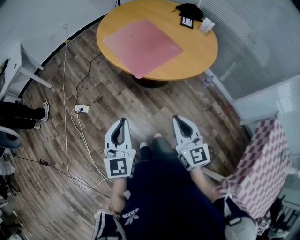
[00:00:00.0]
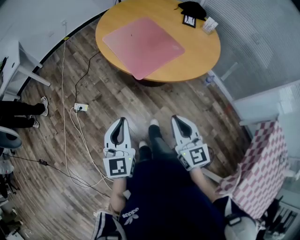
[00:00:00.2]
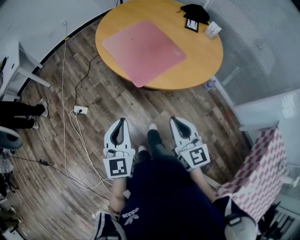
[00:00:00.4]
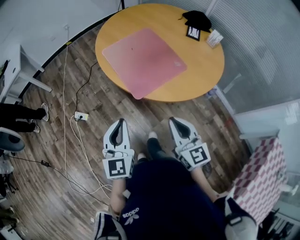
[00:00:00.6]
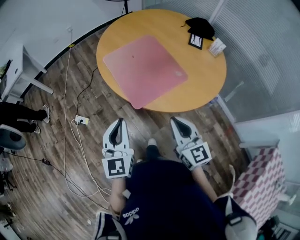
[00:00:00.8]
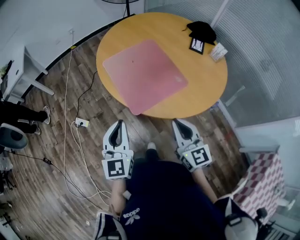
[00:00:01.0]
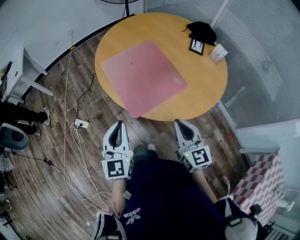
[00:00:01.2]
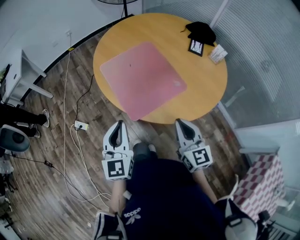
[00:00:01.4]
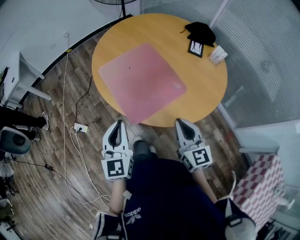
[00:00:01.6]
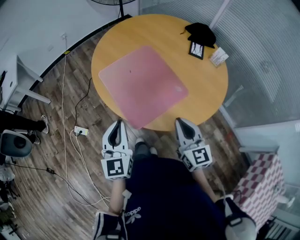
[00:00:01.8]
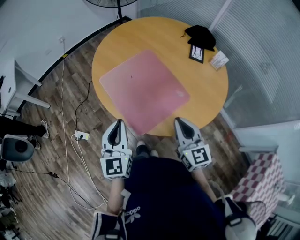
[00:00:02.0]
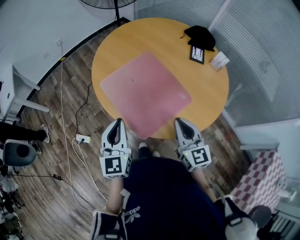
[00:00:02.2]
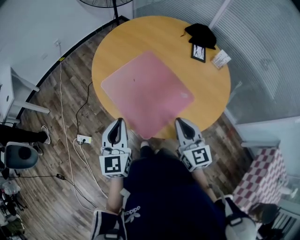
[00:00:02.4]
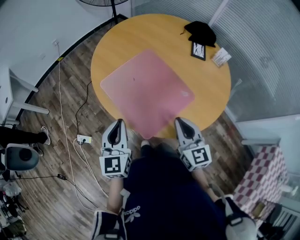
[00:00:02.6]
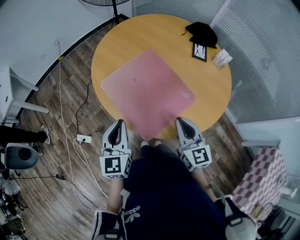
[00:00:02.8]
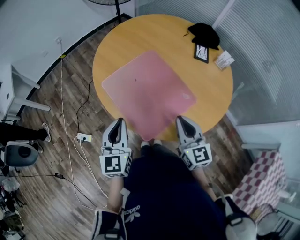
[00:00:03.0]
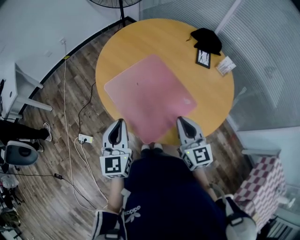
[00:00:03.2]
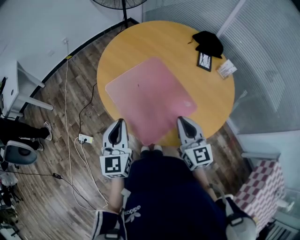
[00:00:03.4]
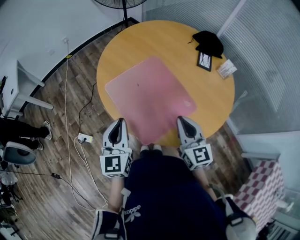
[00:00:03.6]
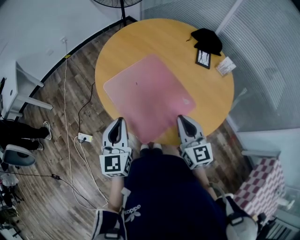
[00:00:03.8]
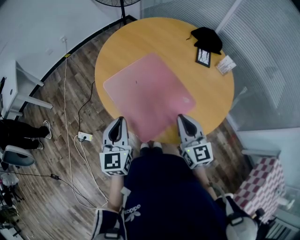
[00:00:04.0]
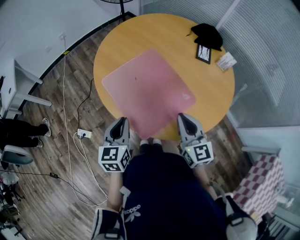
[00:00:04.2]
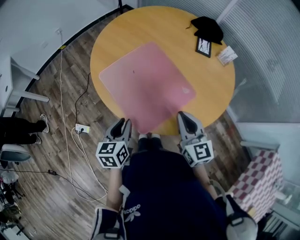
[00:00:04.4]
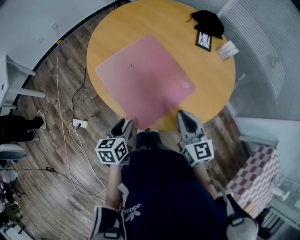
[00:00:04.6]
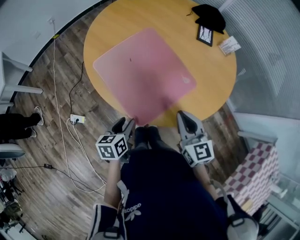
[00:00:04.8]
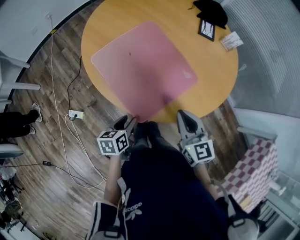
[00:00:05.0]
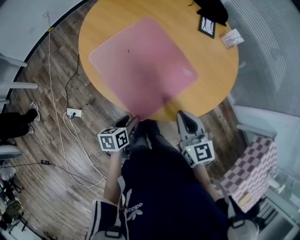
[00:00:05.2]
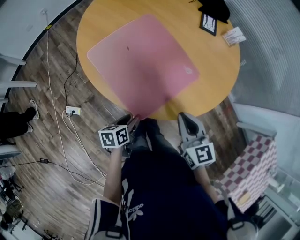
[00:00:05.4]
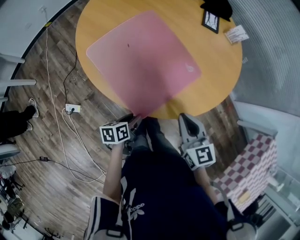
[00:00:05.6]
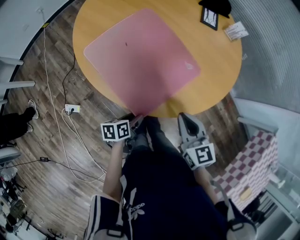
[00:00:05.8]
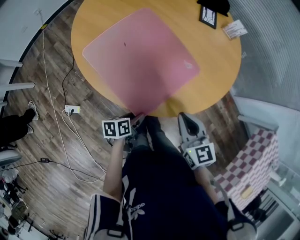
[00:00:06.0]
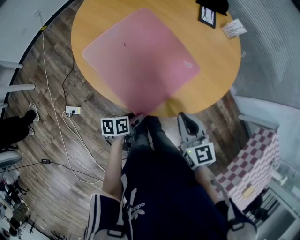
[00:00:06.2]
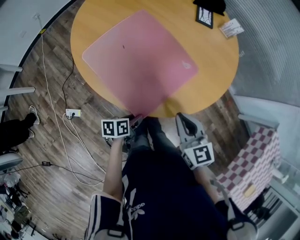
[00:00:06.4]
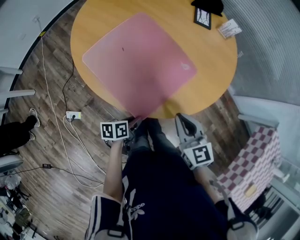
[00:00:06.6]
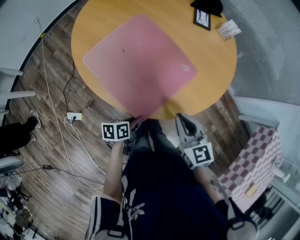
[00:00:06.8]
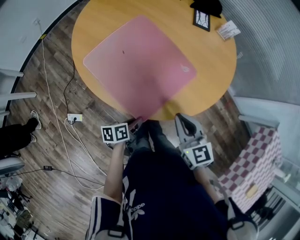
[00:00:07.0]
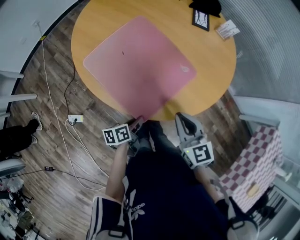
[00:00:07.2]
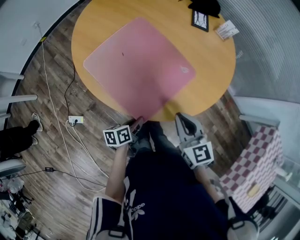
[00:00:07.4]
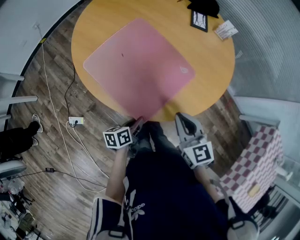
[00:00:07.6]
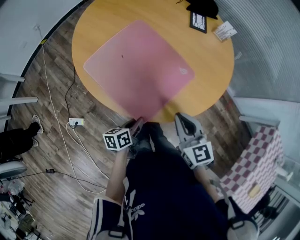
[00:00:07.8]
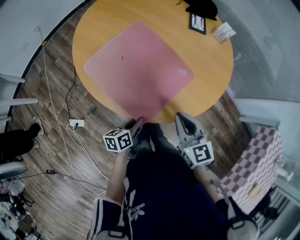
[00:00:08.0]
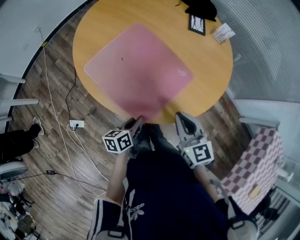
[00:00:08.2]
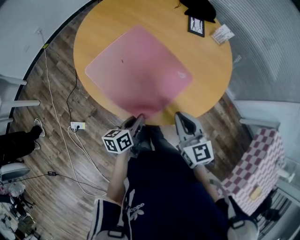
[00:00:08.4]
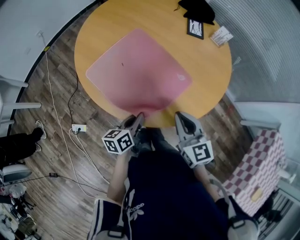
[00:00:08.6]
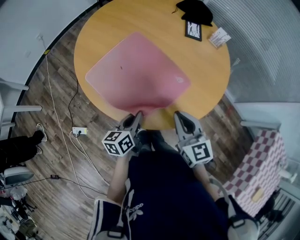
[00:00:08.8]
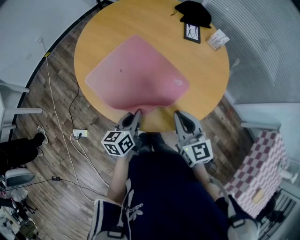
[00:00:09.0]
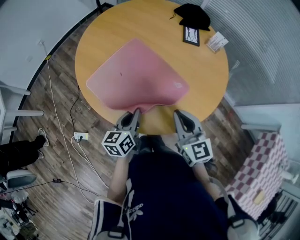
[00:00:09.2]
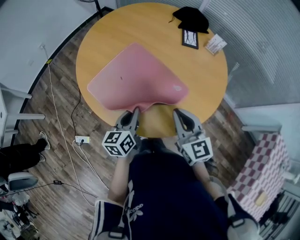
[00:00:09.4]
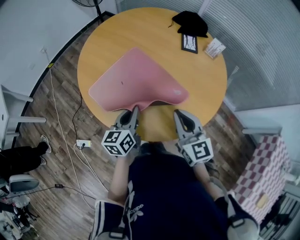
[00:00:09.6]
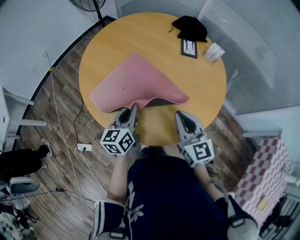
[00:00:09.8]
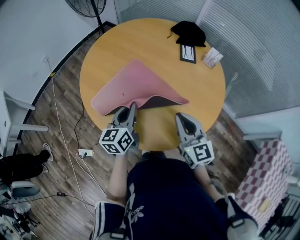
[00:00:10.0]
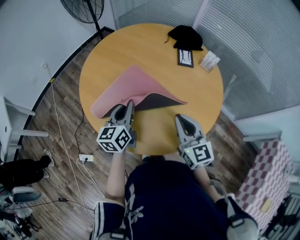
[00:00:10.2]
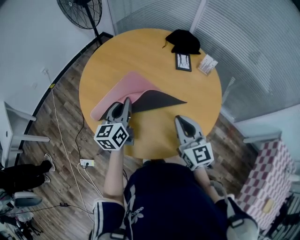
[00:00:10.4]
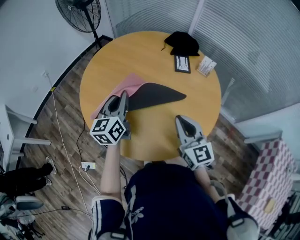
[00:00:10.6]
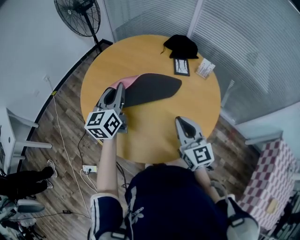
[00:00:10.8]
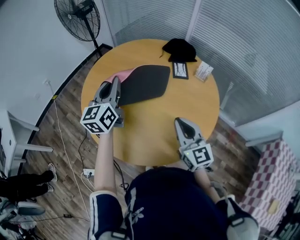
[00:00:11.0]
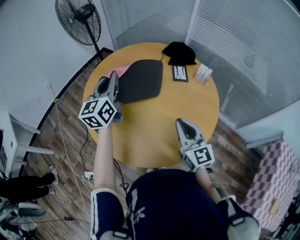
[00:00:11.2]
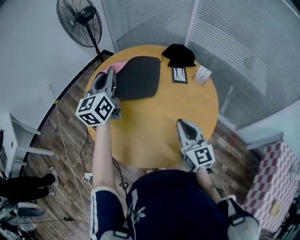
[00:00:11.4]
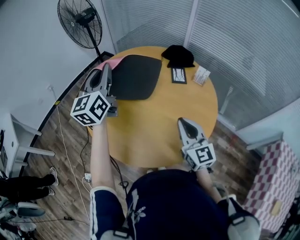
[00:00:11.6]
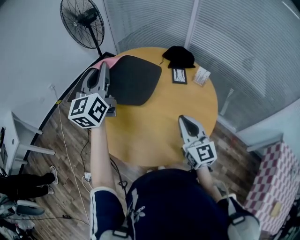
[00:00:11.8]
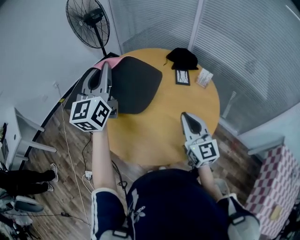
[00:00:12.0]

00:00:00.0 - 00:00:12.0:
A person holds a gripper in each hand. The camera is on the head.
00:00:00.0 - 00:00:01.6: The two grippers go about 25 cm forward.
00:00:01.6 - 00:00:03.0: The grippers both shift forward by roughly 10 cm.
00:00:03.0 - 00:00:04.4: The left gripper goes approximately 10 cm downward, and turns by about 30 degrees.
00:00:04.4 - 00:00:06.0: The left gripper moves downward and to the right, about 20 cm, swivels about 40 degrees, and opens. The right gripper heads downward and backward, covering roughly 10 cm.
00:00:06.0 - 00:00:07.6: The left gripper closes.
00:00:07.6 - 00:00:09.0: The right gripper changes place by some 5 cm, while the left gripper is displaced upward and forward by about 15 cm, and changes its angle by approximately 30 degrees.
00:00:09.0 - 00:00:10.4: The right gripper is displaced forward and upward by roughly 10 cm. Meanwhile the left gripper moves forward and upward, roughly 20 cm, and rotates about 20 degrees.
00:00:10.4 - 00:00:12.0: The left gripper travels upward by roughly 25 cm, and swivels some 30 degrees, while the right gripper heads upward, covering some 5 cm.

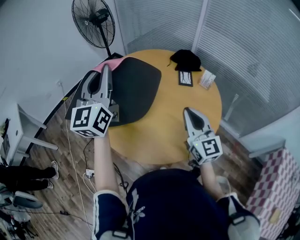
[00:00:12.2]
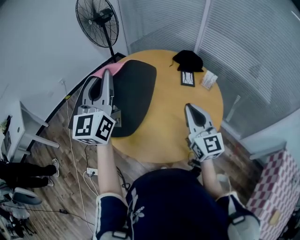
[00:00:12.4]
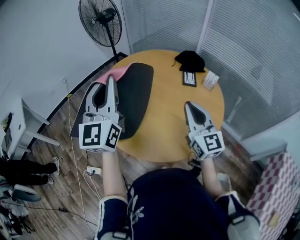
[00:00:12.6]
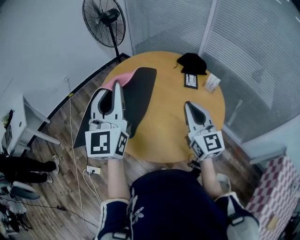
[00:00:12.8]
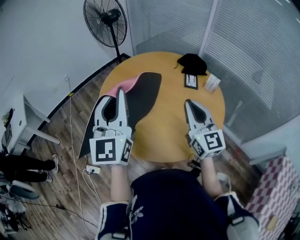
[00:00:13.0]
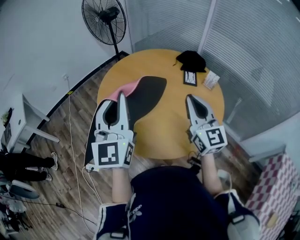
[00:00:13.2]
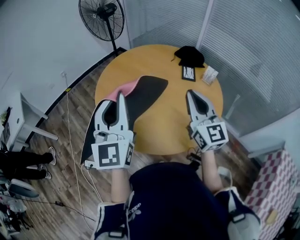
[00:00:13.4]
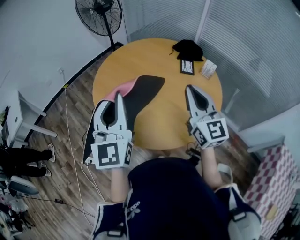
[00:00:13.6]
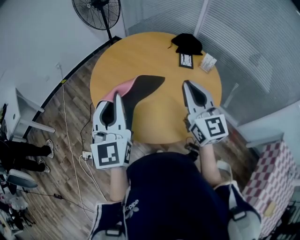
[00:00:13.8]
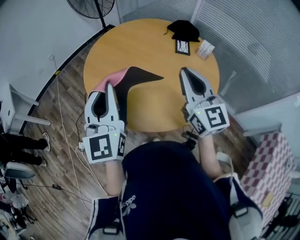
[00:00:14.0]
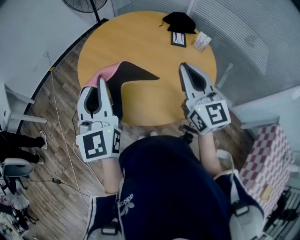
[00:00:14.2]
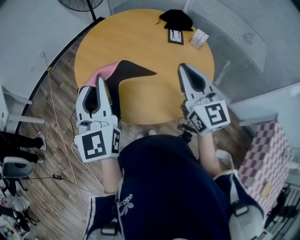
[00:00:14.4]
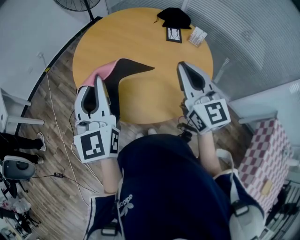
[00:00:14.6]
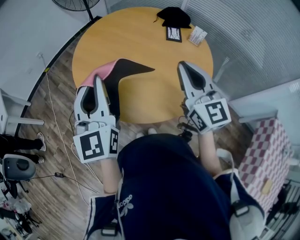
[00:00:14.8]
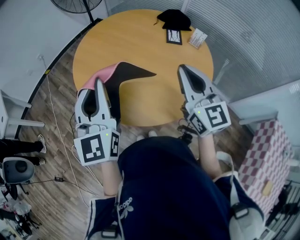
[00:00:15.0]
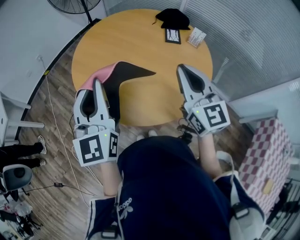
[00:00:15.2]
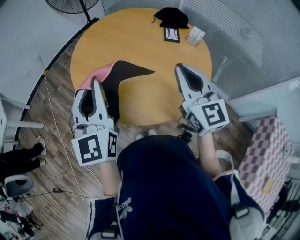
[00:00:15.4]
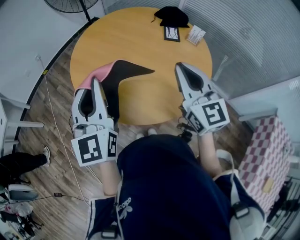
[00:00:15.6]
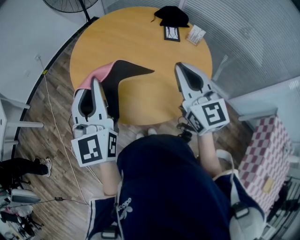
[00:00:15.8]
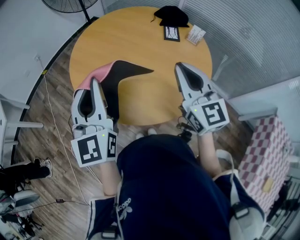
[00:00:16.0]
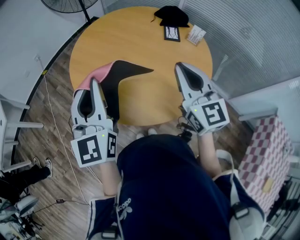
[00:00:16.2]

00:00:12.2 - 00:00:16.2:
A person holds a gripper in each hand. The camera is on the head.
00:00:12.2 - 00:00:13.6: The left gripper shifts roughly 15 cm backward and downward. The right gripper goes some 5 cm upward.
00:00:13.6 - 00:00:14.8: There are only small adjustments of the grippers.
00:00:14.8 - 00:00:16.2: Neither gripper changes place.

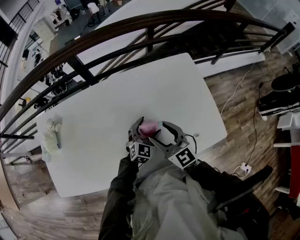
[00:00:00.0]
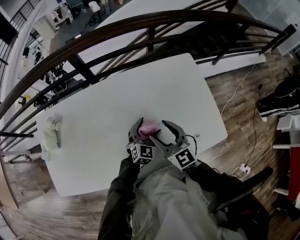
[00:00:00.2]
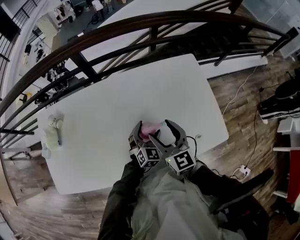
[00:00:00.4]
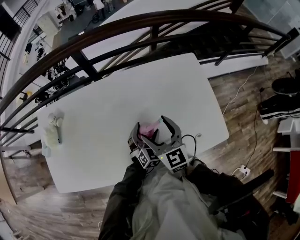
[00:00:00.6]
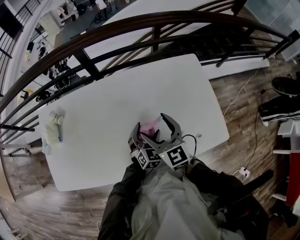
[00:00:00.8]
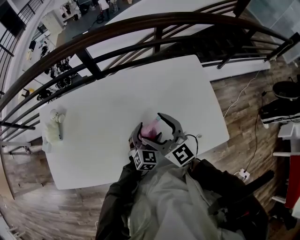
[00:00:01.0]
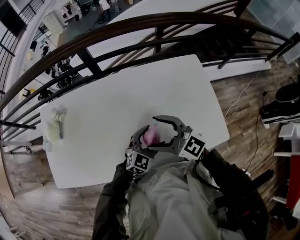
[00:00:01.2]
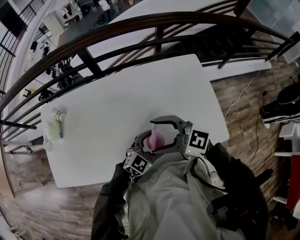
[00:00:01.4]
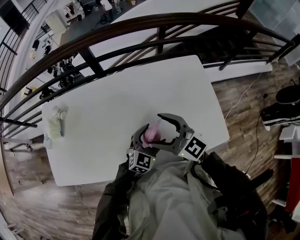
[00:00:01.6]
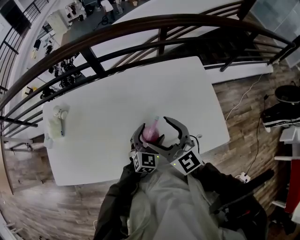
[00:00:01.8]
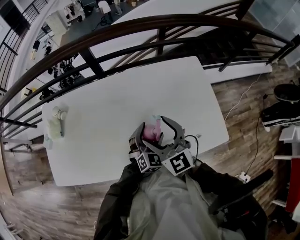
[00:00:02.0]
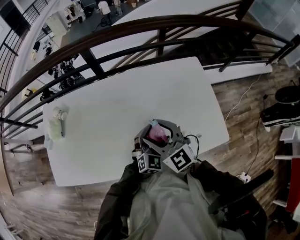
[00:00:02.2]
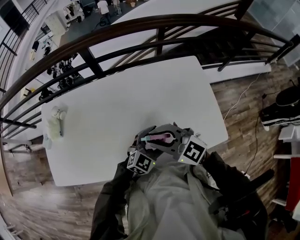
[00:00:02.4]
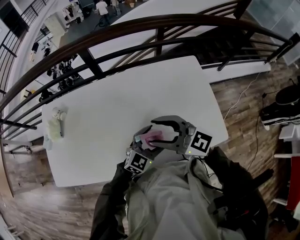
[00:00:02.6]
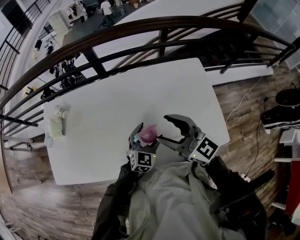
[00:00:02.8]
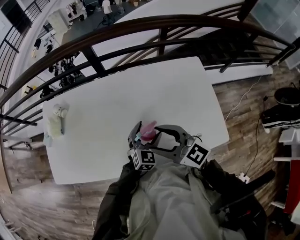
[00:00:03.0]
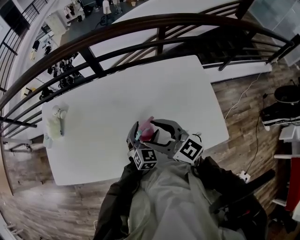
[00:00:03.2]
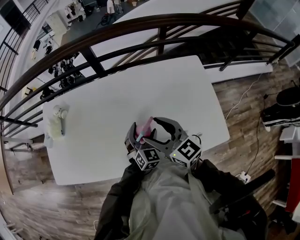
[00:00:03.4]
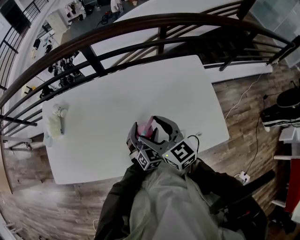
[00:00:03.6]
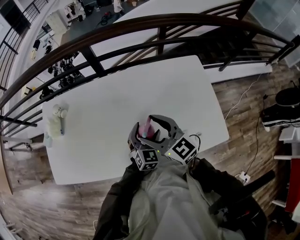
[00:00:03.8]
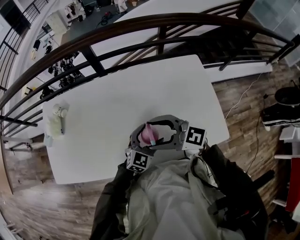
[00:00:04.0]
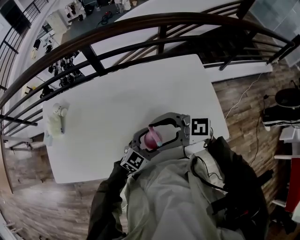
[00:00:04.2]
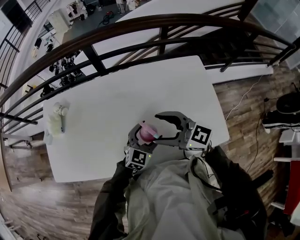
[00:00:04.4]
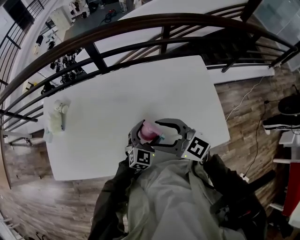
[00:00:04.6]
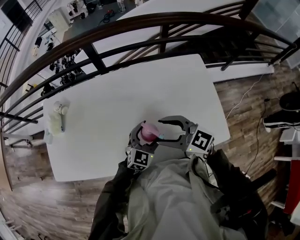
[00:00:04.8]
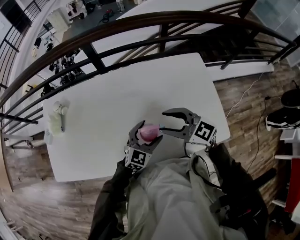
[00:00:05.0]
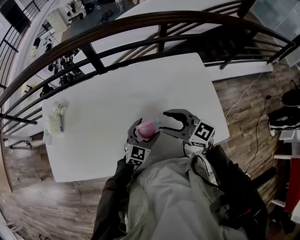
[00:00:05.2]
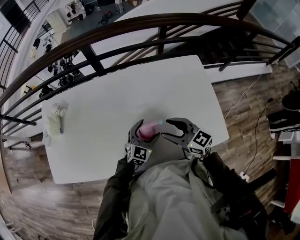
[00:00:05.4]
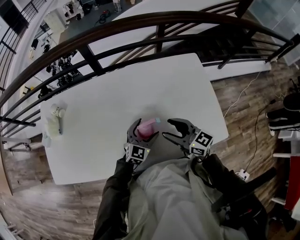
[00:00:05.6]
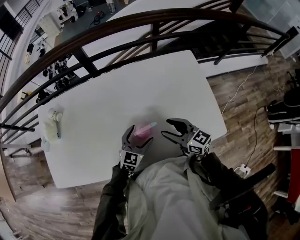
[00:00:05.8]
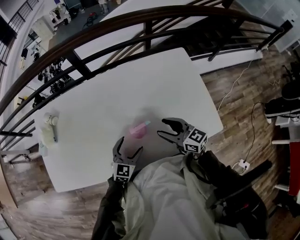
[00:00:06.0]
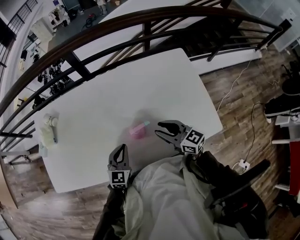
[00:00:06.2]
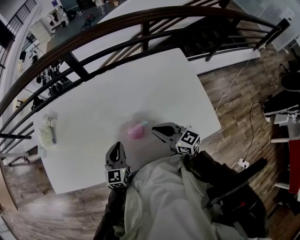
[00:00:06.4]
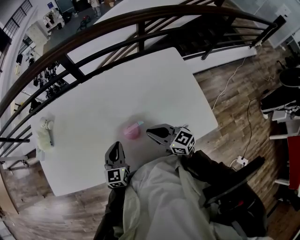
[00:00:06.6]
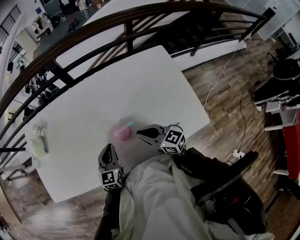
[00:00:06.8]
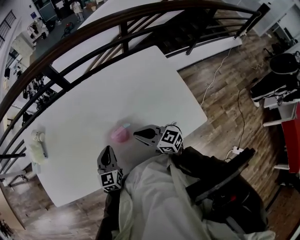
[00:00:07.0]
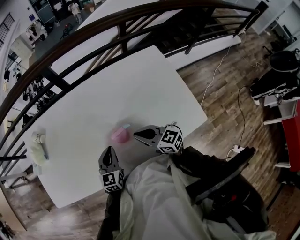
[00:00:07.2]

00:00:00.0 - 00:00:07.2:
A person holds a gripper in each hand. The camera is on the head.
00:00:00.0 - 00:00:01.4: The right gripper changes place by some 10 cm, and rotates roughly 50 degrees. Meanwhile the left gripper ends up approximately 10 cm from where it was.
00:00:01.4 - 00:00:02.8: The left gripper shifts by some 5 cm, and turns by some 30 degrees. The right gripper moves approximately 5 cm, rotates about 30 degrees, and closes and opens again.
00:00:04.4 - 00:00:05.8: The right gripper moves downward and to the right, roughly 15 cm, and swivels some 30 degrees. The left gripper goes some 5 cm downward.
00:00:05.8 - 00:00:07.2: The right gripper closes its fingers. Meanwhile the left gripper shifts some 5 cm to the left, changes its angle by about 20 degrees, and closes its fingers.
